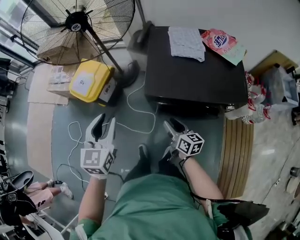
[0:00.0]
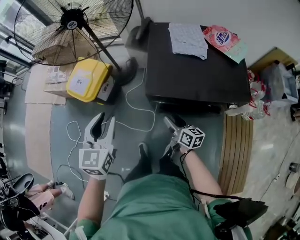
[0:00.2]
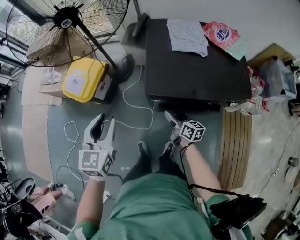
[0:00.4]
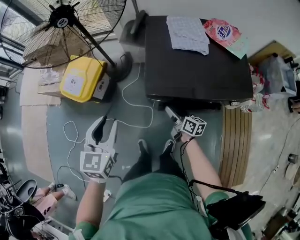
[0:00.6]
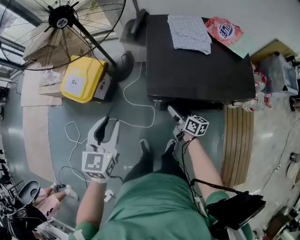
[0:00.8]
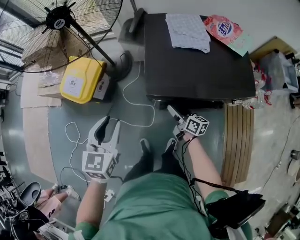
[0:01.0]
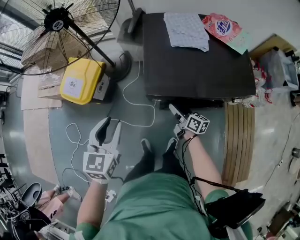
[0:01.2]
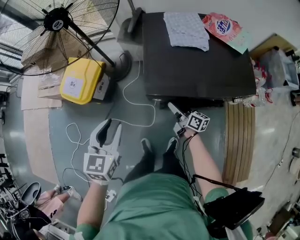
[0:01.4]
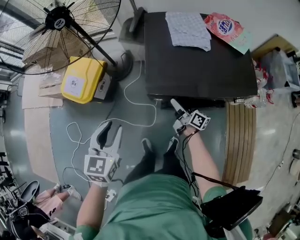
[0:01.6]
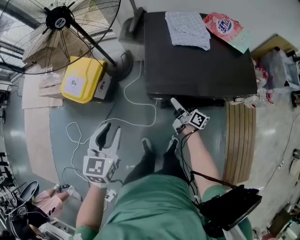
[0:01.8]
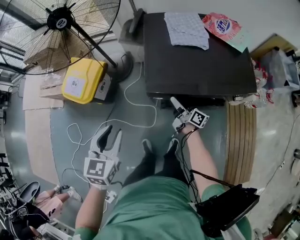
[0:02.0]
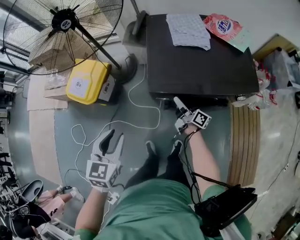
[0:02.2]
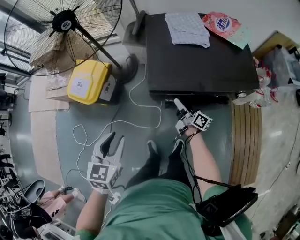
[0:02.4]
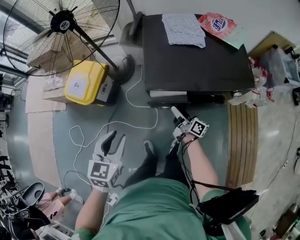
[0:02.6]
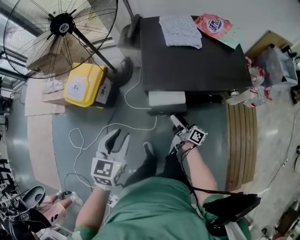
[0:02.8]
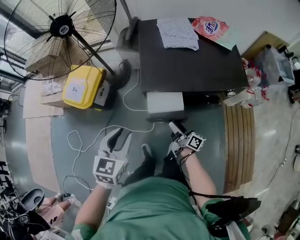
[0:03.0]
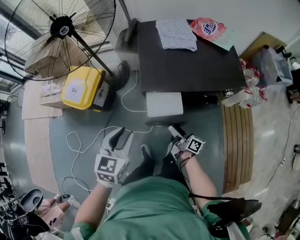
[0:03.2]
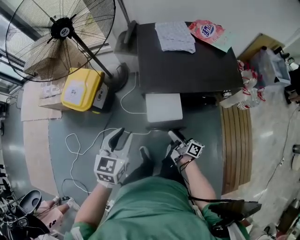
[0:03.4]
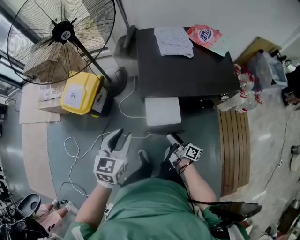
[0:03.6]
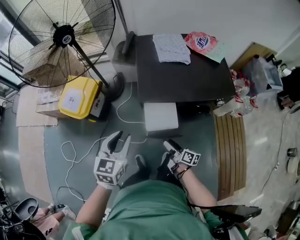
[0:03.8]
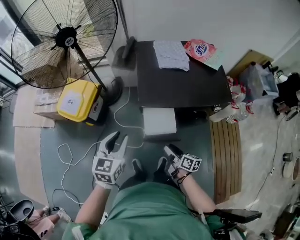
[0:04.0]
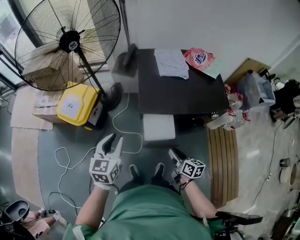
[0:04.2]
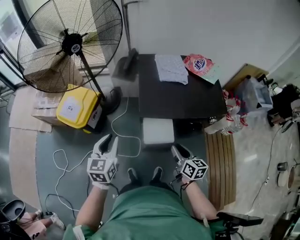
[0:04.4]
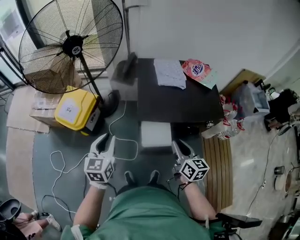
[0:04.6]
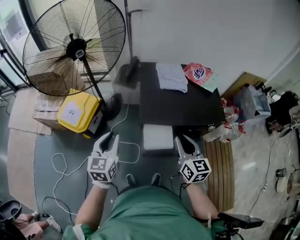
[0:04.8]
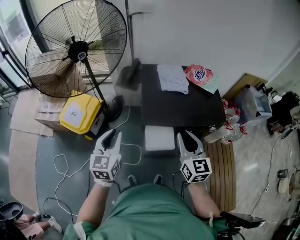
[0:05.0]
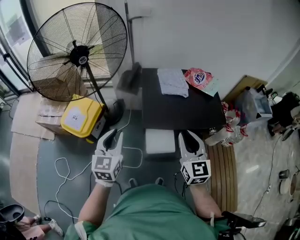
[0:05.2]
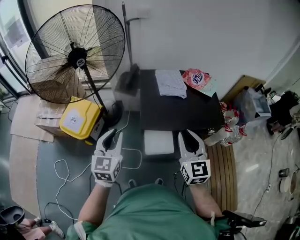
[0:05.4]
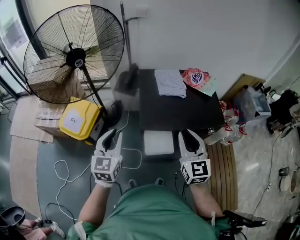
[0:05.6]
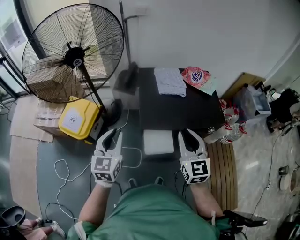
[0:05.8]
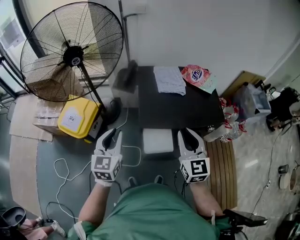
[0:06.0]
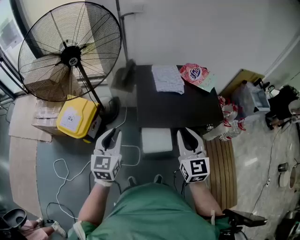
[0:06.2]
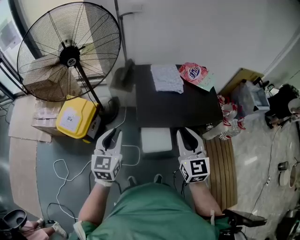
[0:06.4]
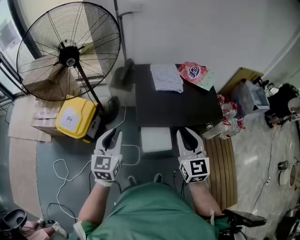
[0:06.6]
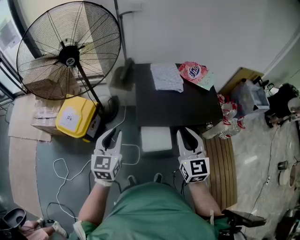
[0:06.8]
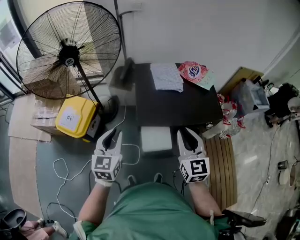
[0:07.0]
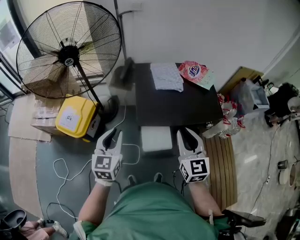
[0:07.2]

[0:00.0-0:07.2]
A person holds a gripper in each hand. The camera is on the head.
0:00.0 to 0:01.4: The left gripper is displaced downward by about 5 cm. Meanwhile the right gripper moves forward and downward, about 15 cm, and opens its fingers.
0:01.4 to 0:02.8: The grippers both shift backward by some 10 cm.
0:02.8 to 0:04.4: The left gripper heads to the left and upward, covering approximately 10 cm, while the right gripper goes some 15 cm upward and backward, rotates approximately 40 degrees, and closes up.
0:04.4 to 0:05.8: The right gripper is displaced upward by about 20 cm, and changes its angle by about 40 degrees. Meanwhile the left gripper shifts some 10 cm upward and forward.
0:05.8 to 0:07.2: The grippers stay close to where they were, moving slightly.

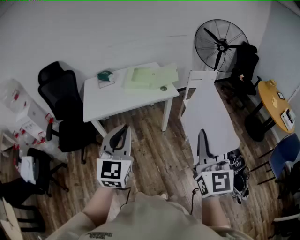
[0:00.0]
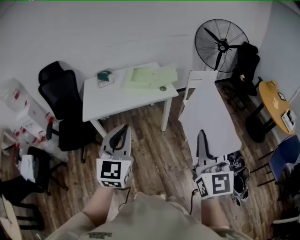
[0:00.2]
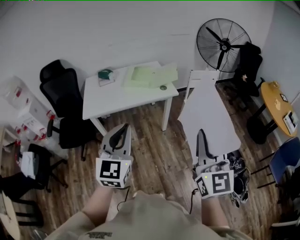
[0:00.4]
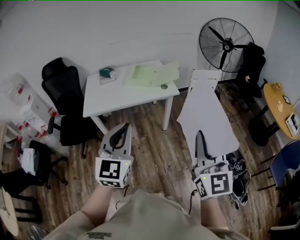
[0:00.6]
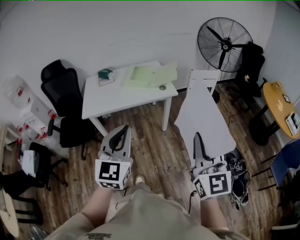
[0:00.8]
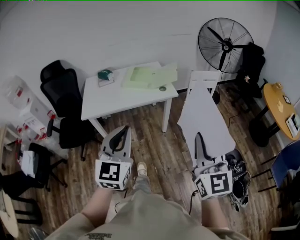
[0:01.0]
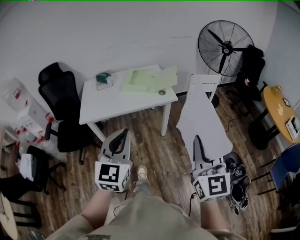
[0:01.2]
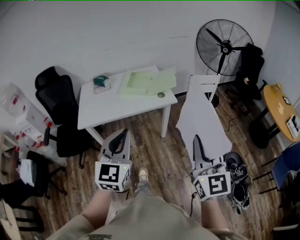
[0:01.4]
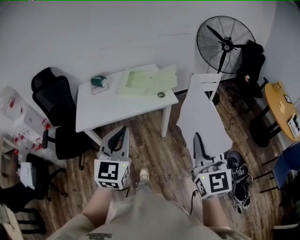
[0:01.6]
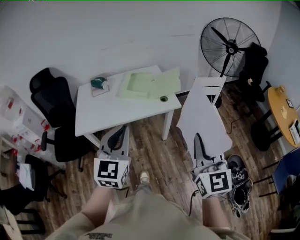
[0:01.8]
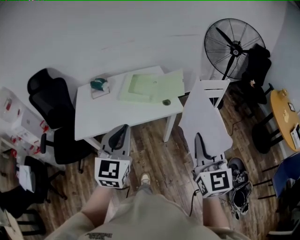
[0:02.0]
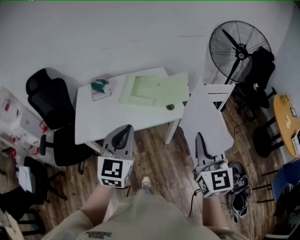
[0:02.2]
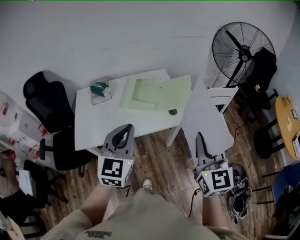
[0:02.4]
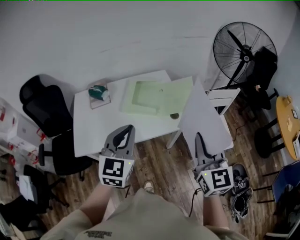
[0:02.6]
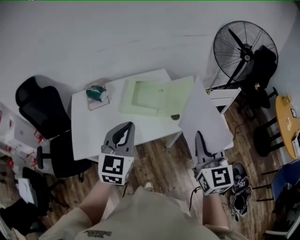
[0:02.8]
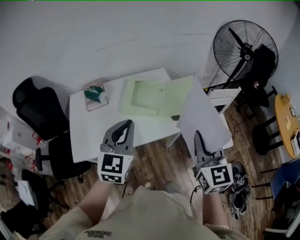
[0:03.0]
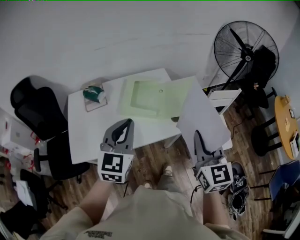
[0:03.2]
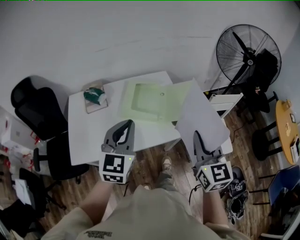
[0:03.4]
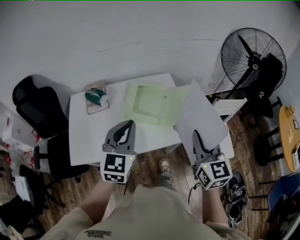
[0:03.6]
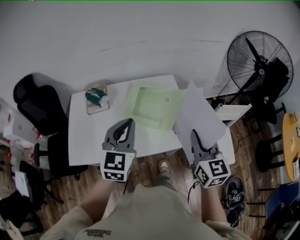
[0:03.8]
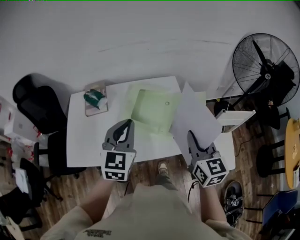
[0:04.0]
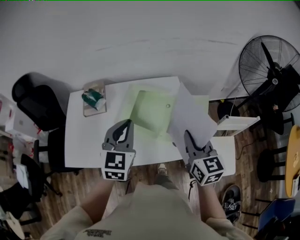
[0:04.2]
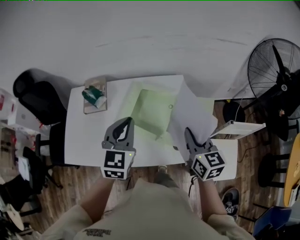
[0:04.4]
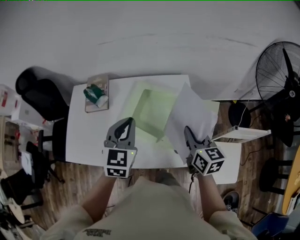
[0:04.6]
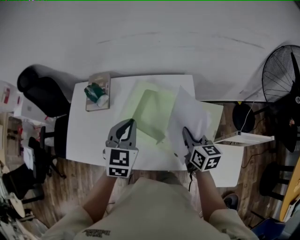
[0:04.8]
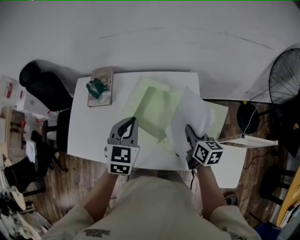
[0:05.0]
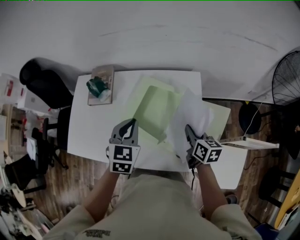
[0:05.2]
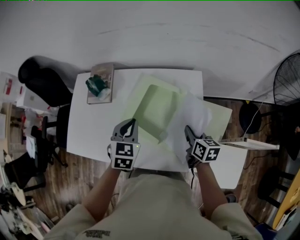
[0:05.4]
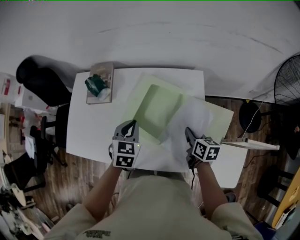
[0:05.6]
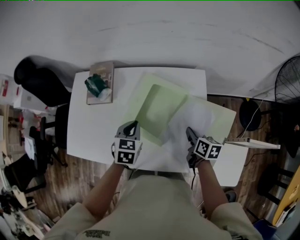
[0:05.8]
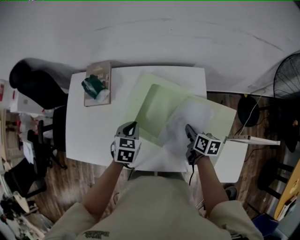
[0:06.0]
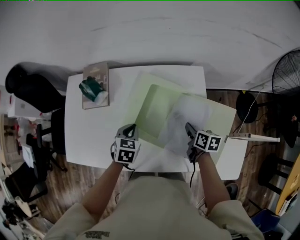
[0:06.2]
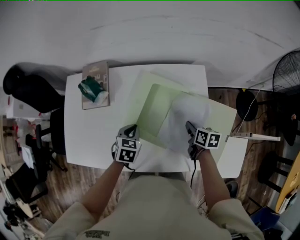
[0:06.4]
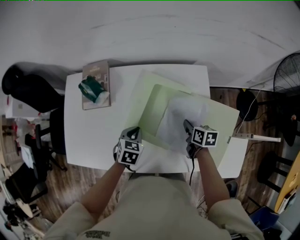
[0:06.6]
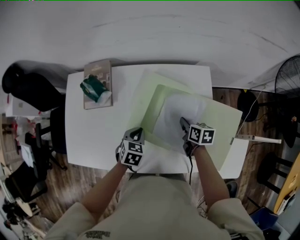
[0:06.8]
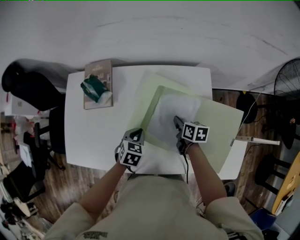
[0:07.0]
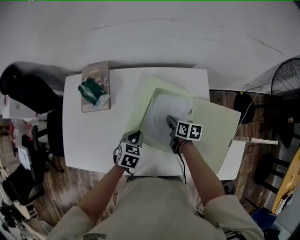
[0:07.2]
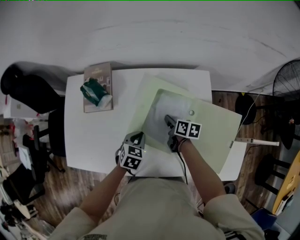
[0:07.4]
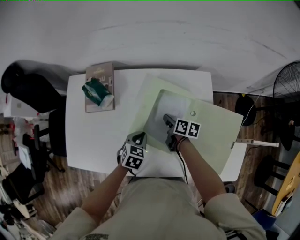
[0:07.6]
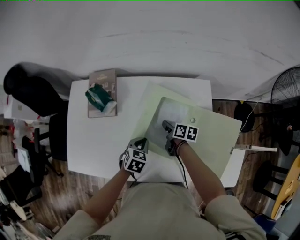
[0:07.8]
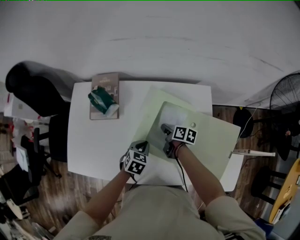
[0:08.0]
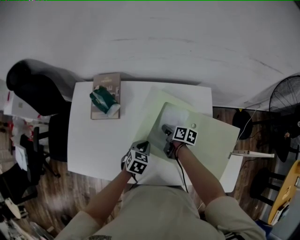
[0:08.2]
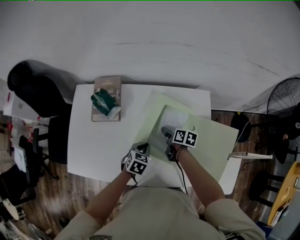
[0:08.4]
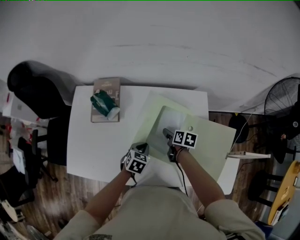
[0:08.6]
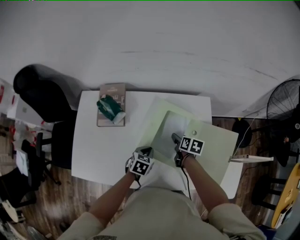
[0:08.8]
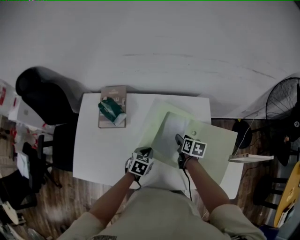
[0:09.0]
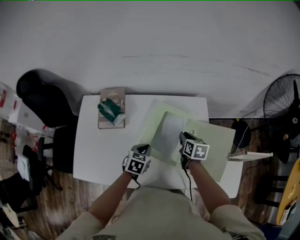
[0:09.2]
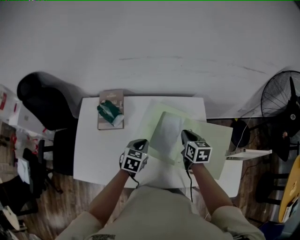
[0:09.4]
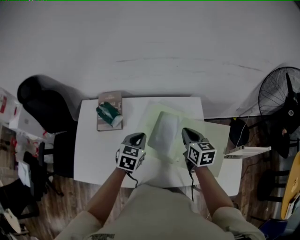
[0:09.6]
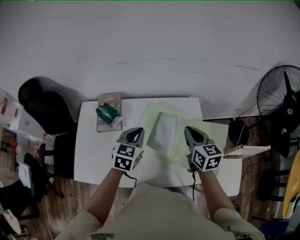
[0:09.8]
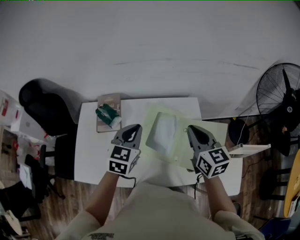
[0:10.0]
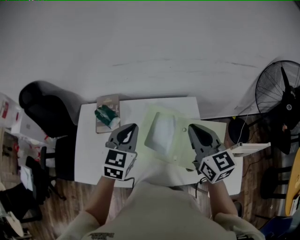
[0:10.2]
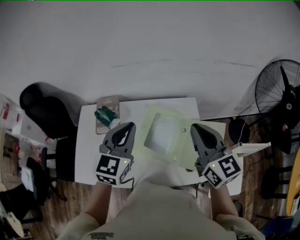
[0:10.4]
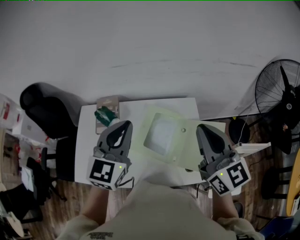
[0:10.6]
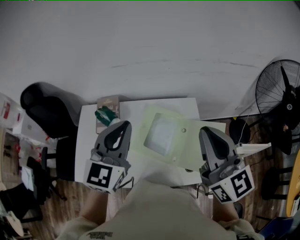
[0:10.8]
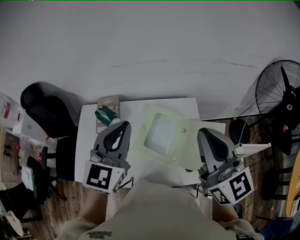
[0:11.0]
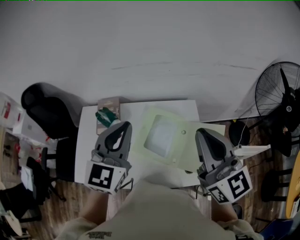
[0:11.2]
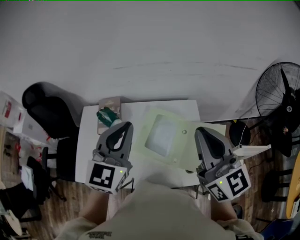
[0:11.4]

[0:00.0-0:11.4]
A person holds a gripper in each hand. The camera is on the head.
0:00.0 to 0:01.4: Both grippers move forward and to the right, roughly 10 cm.
0:01.4 to 0:02.8: The two grippers go some 35 cm forward.
0:02.8 to 0:04.2: The right gripper shifts roughly 25 cm forward and downward, and swivels roughly 20 degrees, while the left gripper is displaced forward by approximately 20 cm.
0:04.2 to 0:05.6: Both grippers travel together downward and forward, roughly 25 cm. The right gripper swivels some 40 degrees. Meanwhile the left gripper turns by about 30 degrees.
0:05.6 to 0:07.2: The right gripper is displaced to the left, forward and downward by some 15 cm. The left gripper heads downward, covering approximately 10 cm, and rotates some 20 degrees.
0:07.2 to 0:08.6: The right gripper opens its fingers.
0:08.6 to 0:10.0: The two grippers go roughly 30 cm upward. The left gripper changes its angle by about 30 degrees. The right gripper tips its fingers upward by some 30 degrees, and closes.
0:10.0 to 0:11.4: The left gripper heads upward, covering some 15 cm. The right gripper shifts roughly 15 cm upward and backward, and swivels about 20 degrees.

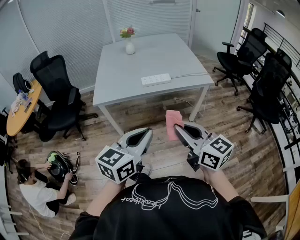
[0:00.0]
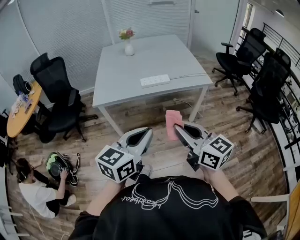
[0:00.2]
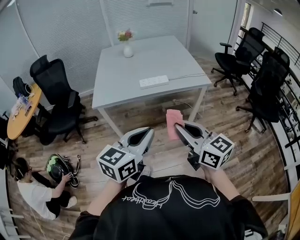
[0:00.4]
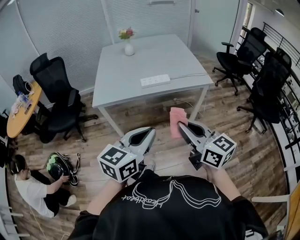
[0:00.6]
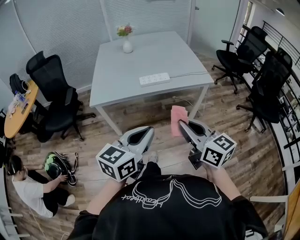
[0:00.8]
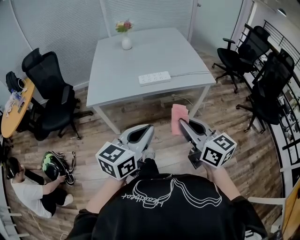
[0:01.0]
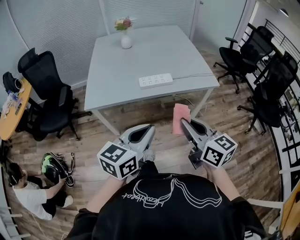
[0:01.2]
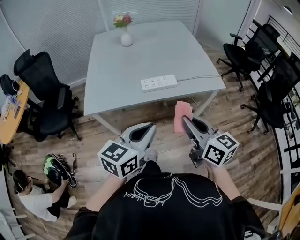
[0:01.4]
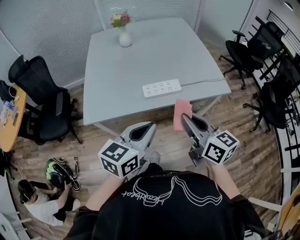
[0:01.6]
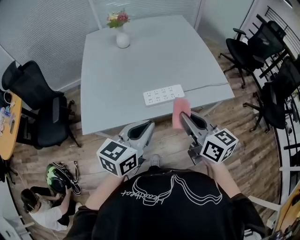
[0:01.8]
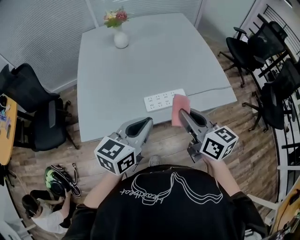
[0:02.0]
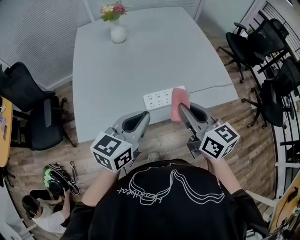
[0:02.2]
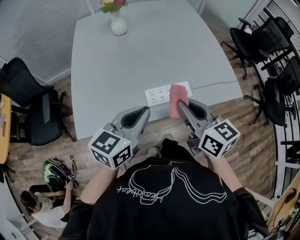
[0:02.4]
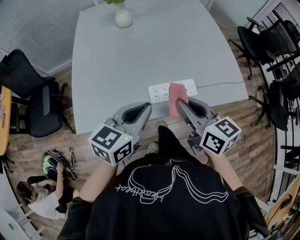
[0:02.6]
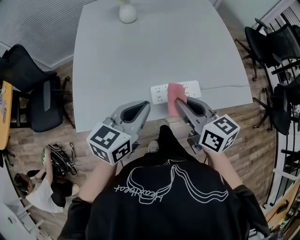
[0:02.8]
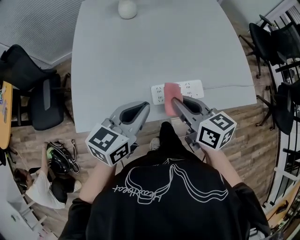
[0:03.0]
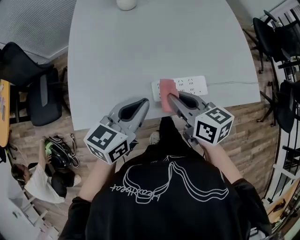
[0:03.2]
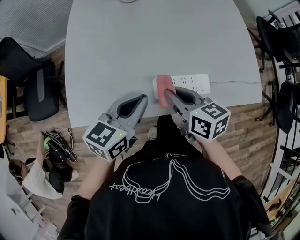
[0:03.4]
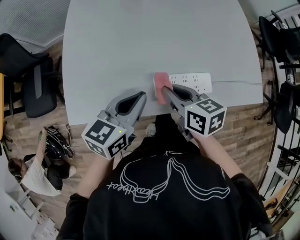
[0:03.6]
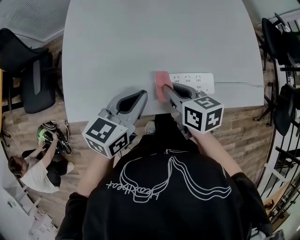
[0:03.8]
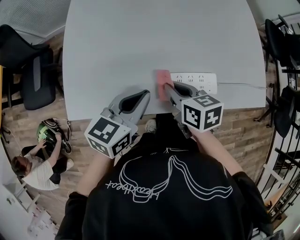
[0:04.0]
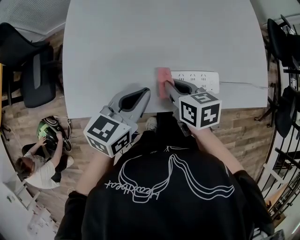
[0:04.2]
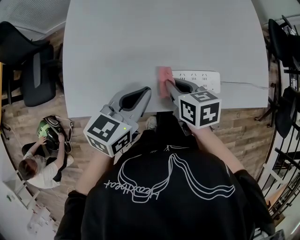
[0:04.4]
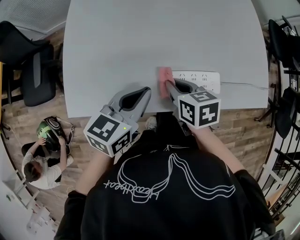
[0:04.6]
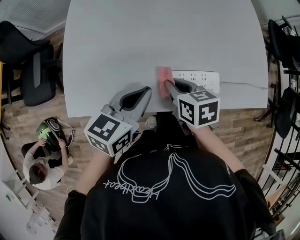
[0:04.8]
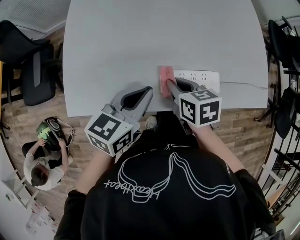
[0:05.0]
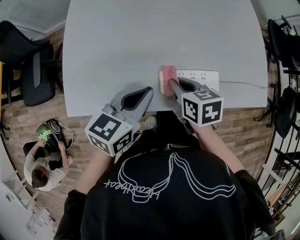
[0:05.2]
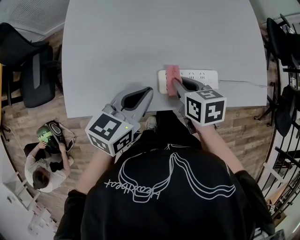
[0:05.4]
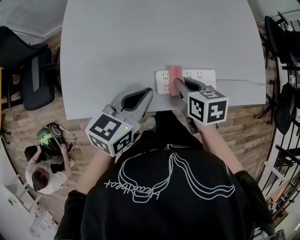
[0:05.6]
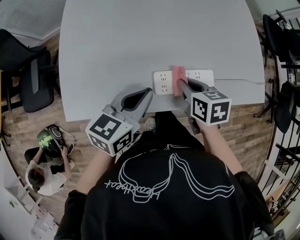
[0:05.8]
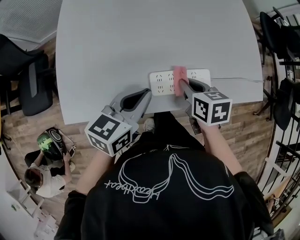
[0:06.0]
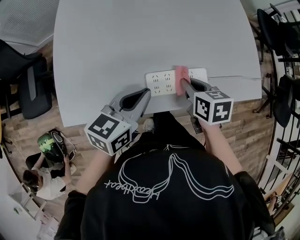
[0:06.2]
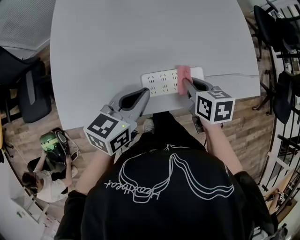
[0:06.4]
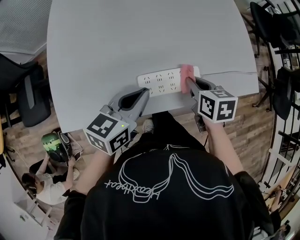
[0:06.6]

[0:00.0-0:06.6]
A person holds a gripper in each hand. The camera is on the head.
0:00.0 to 0:01.6: The grippers both shift forward by roughly 30 cm.
0:01.6 to 0:03.2: The right gripper travels forward, downward and to the left by about 30 cm, and turns by about 20 degrees, while the left gripper shifts roughly 30 cm forward and downward.
0:03.2 to 0:05.0: The left gripper goes about 5 cm downward. The right gripper heads downward, covering some 10 cm, and turns by approximately 20 degrees.
0:05.0 to 0:06.6: The left gripper travels to the right by approximately 5 cm. The right gripper shifts some 15 cm to the right.
